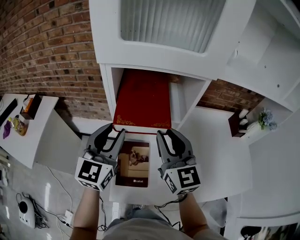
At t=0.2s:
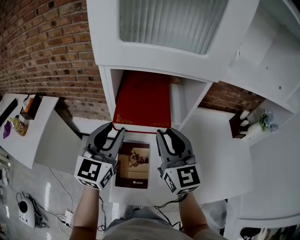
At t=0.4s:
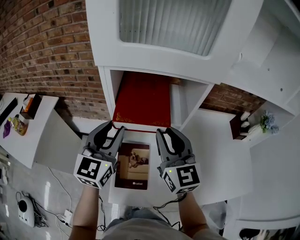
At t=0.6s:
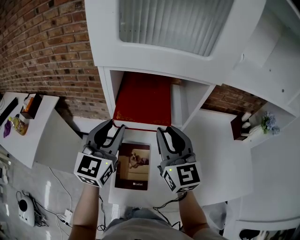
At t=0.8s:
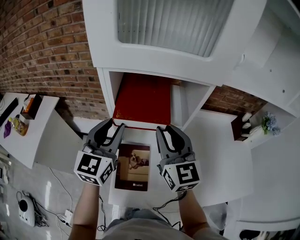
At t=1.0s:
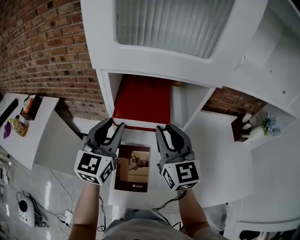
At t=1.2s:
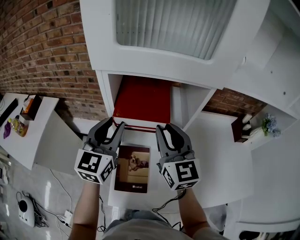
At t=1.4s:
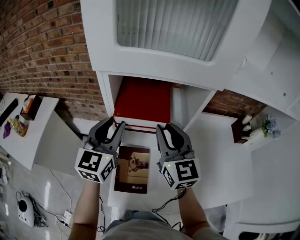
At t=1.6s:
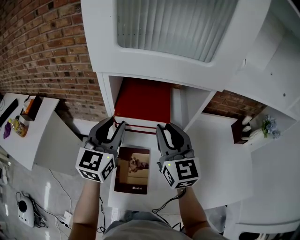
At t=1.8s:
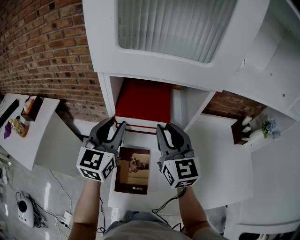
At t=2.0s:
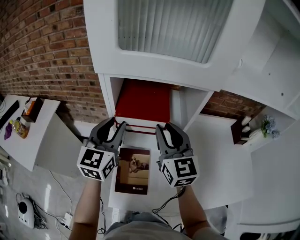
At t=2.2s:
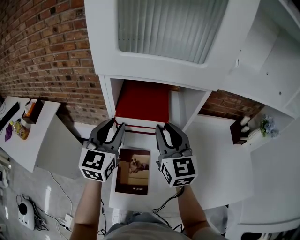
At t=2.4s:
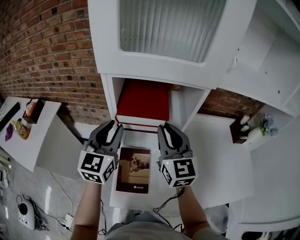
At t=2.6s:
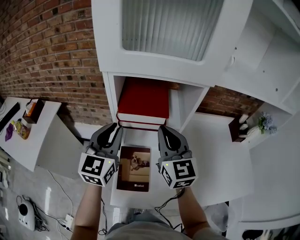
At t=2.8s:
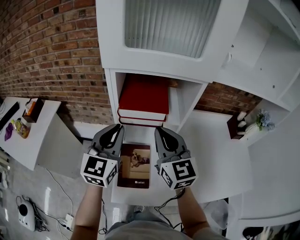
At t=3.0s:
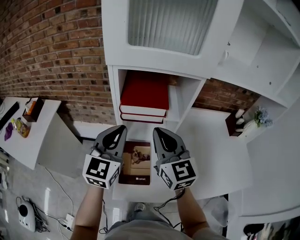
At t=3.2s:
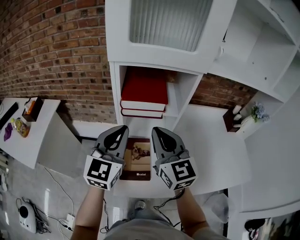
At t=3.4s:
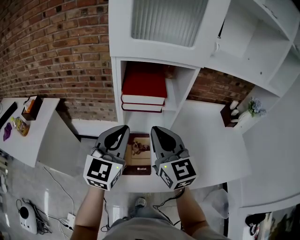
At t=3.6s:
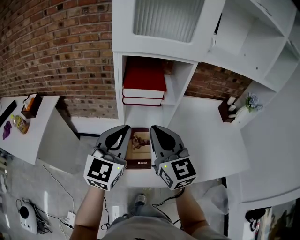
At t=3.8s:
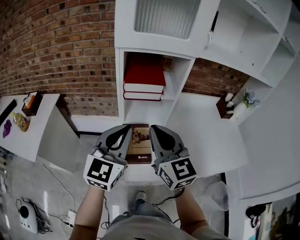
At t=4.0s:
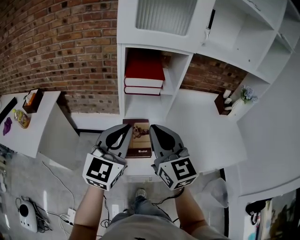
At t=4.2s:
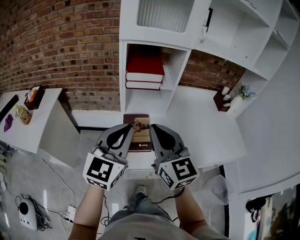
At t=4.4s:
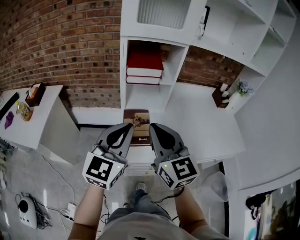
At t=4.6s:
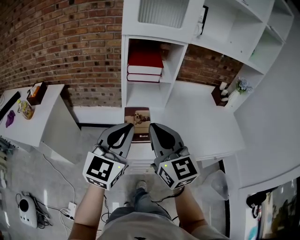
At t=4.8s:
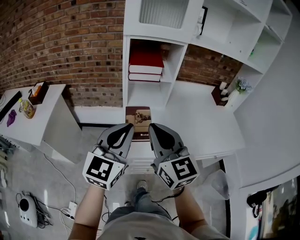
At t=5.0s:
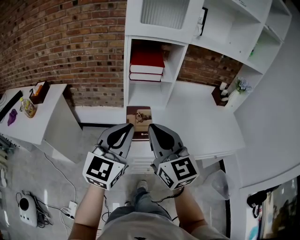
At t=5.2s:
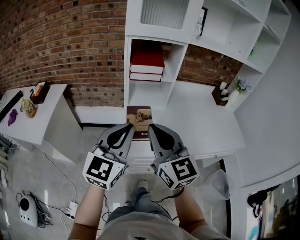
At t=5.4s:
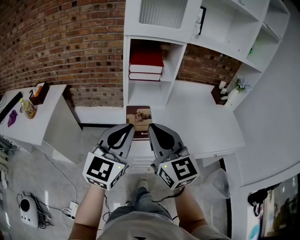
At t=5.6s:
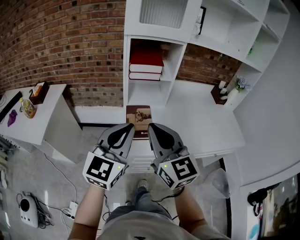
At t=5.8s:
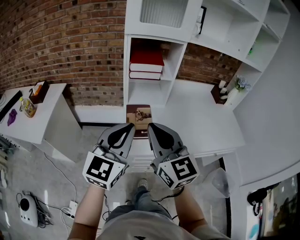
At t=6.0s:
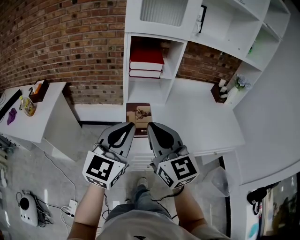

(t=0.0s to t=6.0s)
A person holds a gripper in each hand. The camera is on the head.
t=0.0s - t=1.6s: The two grippers go approximately 5 cm forward.
t=1.6s - t=3.0s: Both grippers travel together backward, roughly 10 cm. The right gripper closes up. Meanwhile the left gripper closes up.
t=3.0s - t=4.4s: The grippers both shift backward by roughly 20 cm.
t=4.4s - t=6.0s: Both grippers travel together backward, roughly 5 cm.
